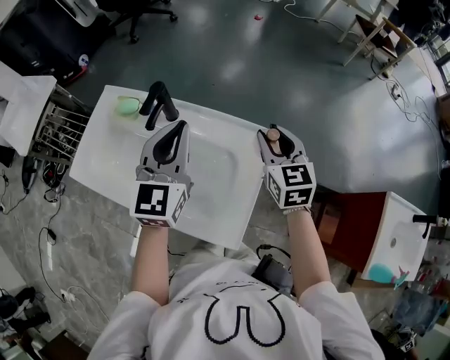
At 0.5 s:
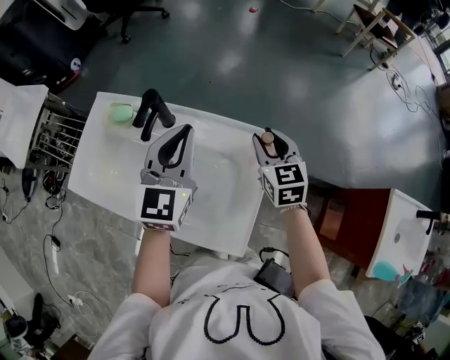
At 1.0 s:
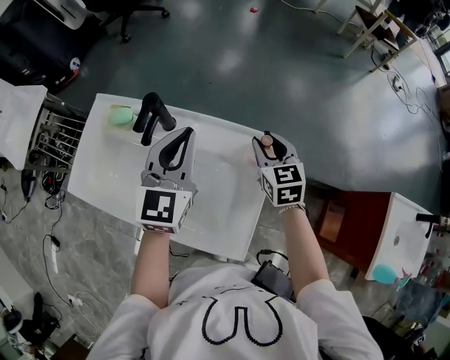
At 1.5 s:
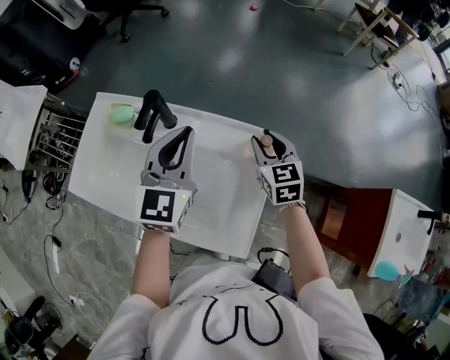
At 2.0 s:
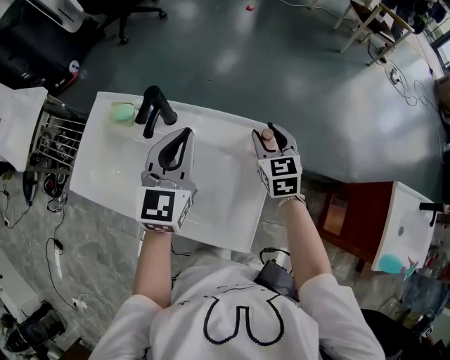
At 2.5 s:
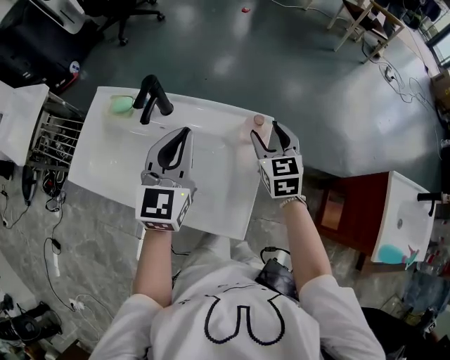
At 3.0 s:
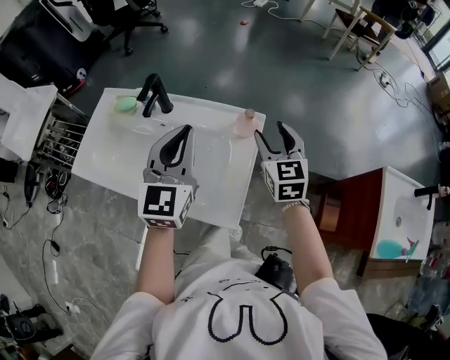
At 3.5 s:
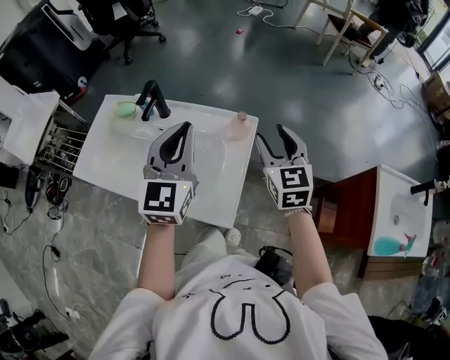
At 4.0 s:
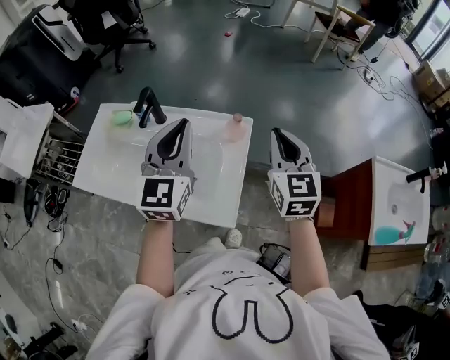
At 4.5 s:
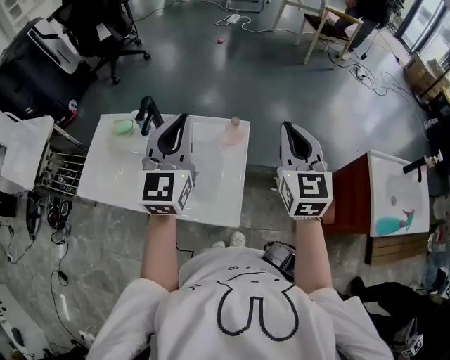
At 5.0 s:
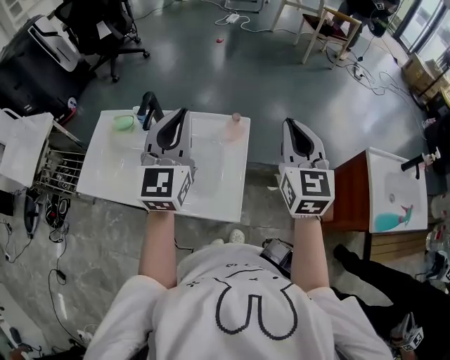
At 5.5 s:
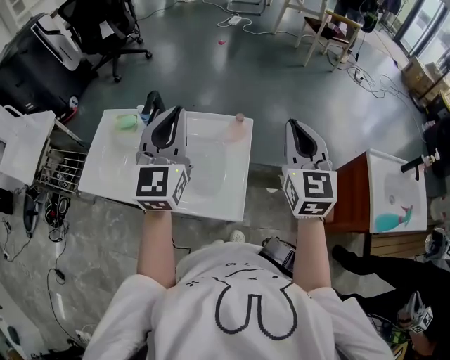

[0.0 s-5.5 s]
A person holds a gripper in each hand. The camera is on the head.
0.0 to 2.0 s: The right gripper moves downward, some 10 cm.
2.0 to 3.5 s: The grippers both shift backward, upward and to the right by about 15 cm.
3.5 to 5.5 s: The left gripper heads upward, covering about 5 cm, while the right gripper travels upward and backward by about 15 cm, and closes up.

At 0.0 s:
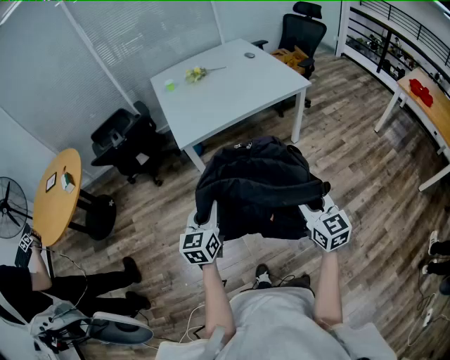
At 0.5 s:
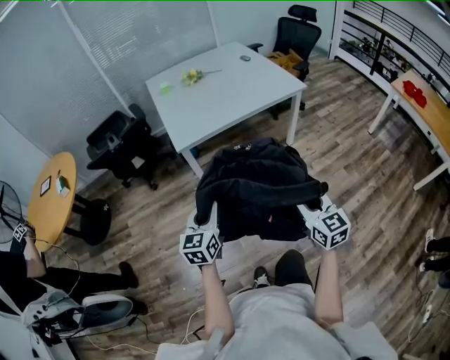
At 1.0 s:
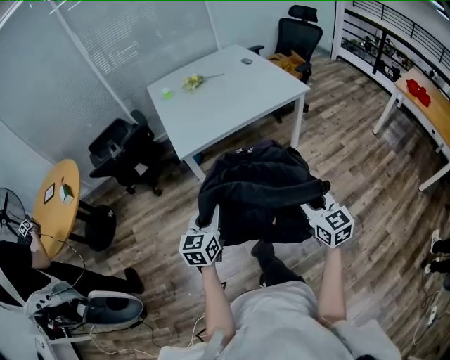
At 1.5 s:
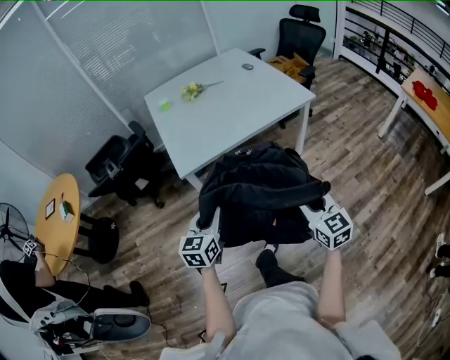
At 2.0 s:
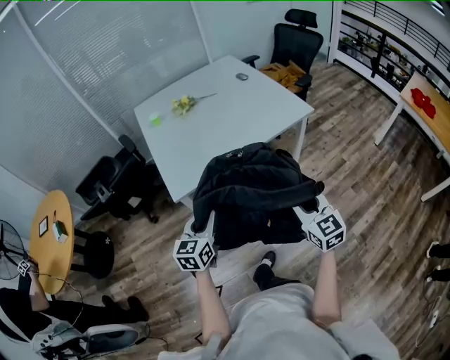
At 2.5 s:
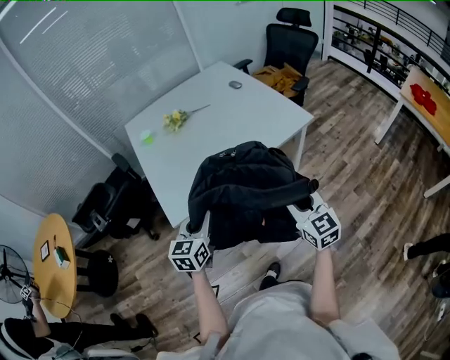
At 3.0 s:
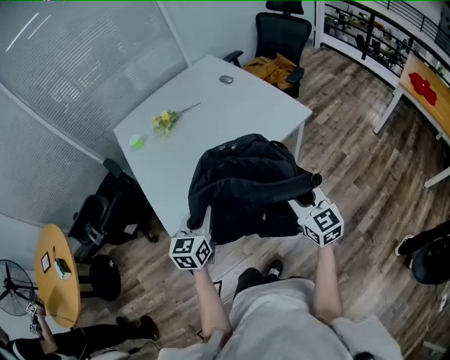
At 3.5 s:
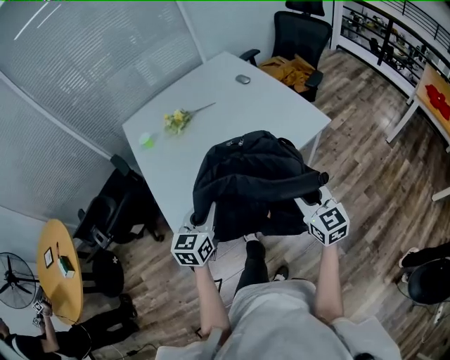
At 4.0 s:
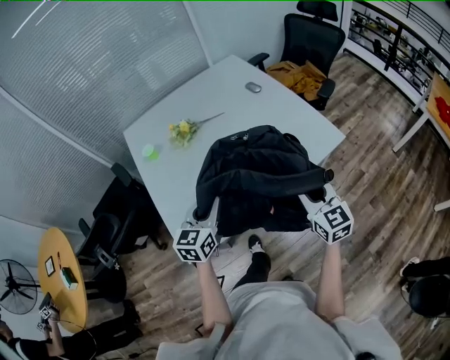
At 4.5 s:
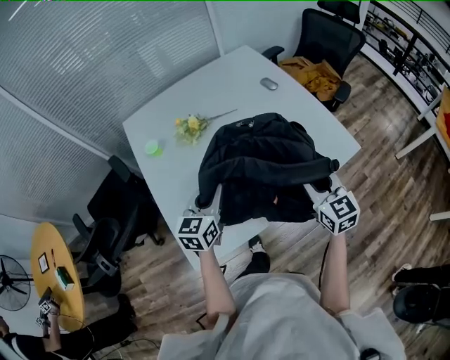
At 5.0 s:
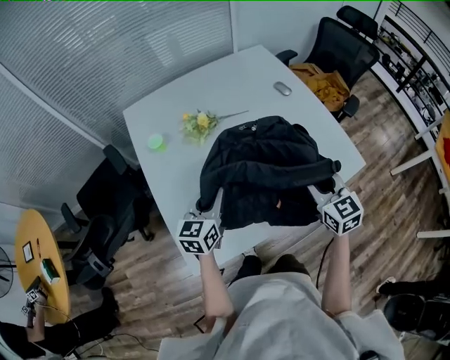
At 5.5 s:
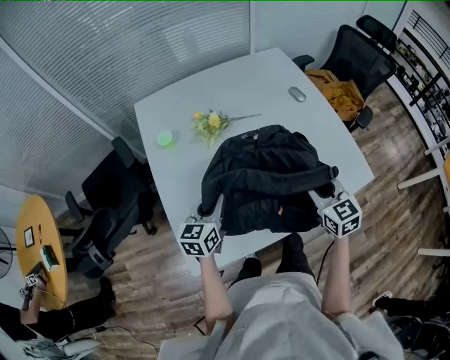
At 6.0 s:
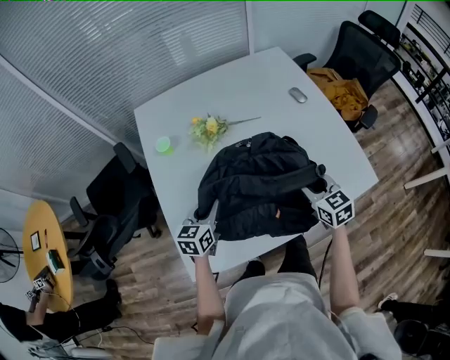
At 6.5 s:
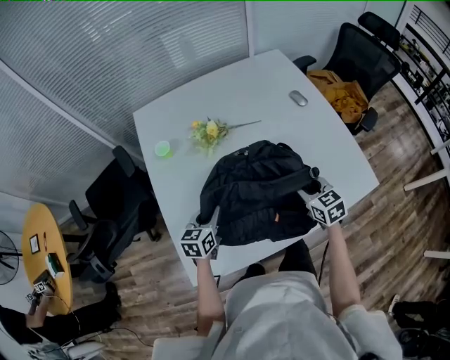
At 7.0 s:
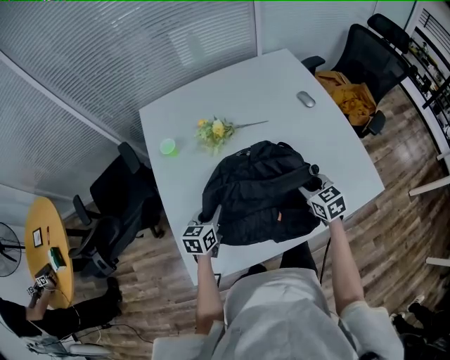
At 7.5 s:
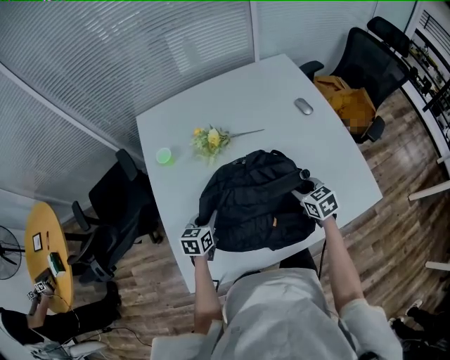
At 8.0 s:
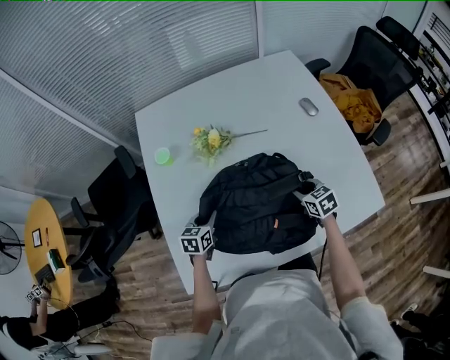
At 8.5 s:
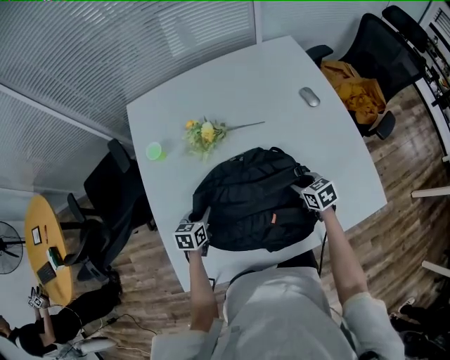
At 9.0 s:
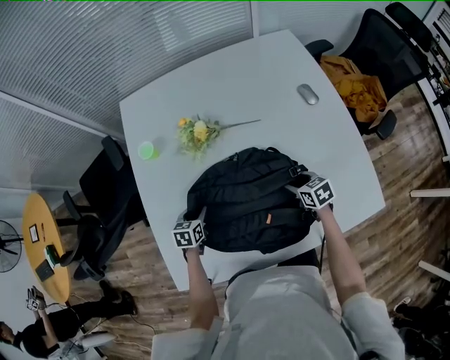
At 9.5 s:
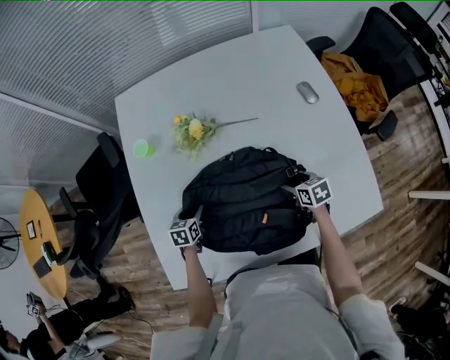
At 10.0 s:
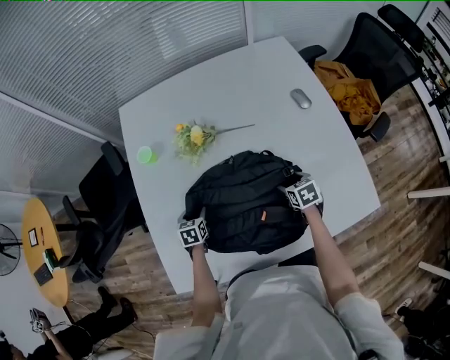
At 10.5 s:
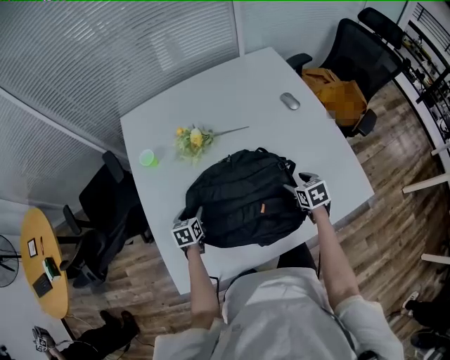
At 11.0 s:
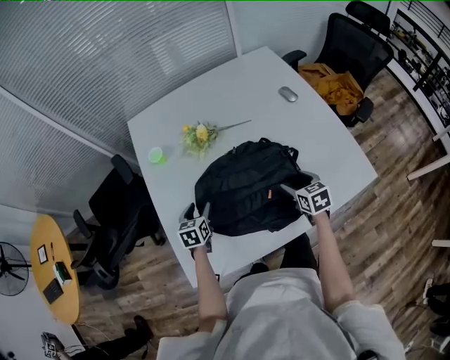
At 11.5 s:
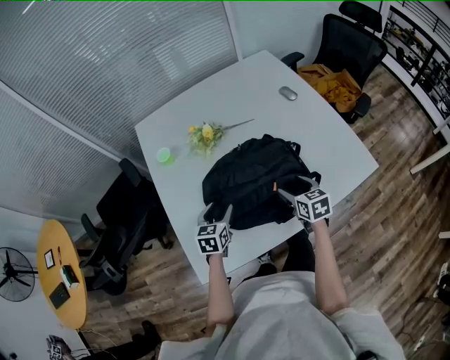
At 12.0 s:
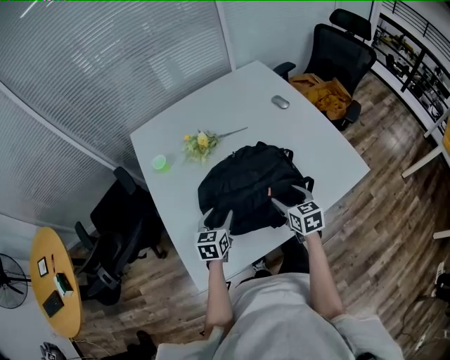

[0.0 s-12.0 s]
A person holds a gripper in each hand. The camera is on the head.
0.0 to 2.0 s: Both grippers move forward, roughly 25 cm.
2.0 to 4.0 s: The grippers both shift forward by approximately 40 cm.
4.0 to 6.0 s: The left gripper goes some 25 cm forward, downward and to the left. Meanwhile the right gripper shifts some 25 cm forward and downward, and swivels some 20 degrees.
6.0 to 8.0 s: The right gripper travels downward and forward by some 15 cm. Meanwhile the left gripper heads downward, covering roughly 10 cm.
8.0 to 10.0 s: The grippers both shift downward by some 5 cm. The right gripper opens, while the left gripper opens up.
10.0 to 12.0 s: The right gripper shifts about 25 cm backward, upward and to the left, and changes its angle by about 30 degrees. The left gripper moves upward and backward, about 20 cm, and rotates about 30 degrees.

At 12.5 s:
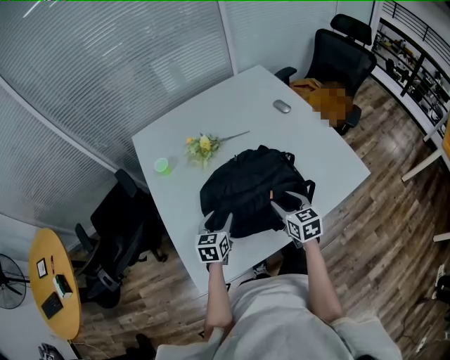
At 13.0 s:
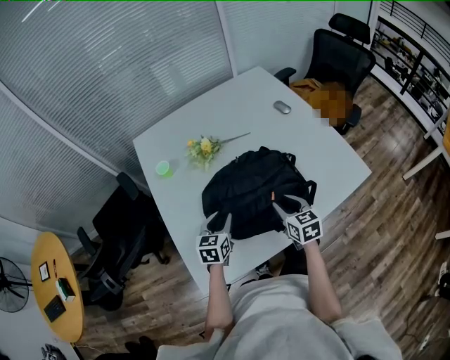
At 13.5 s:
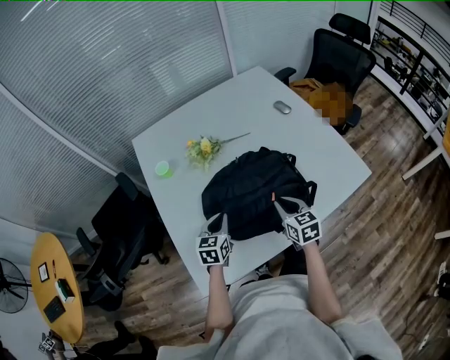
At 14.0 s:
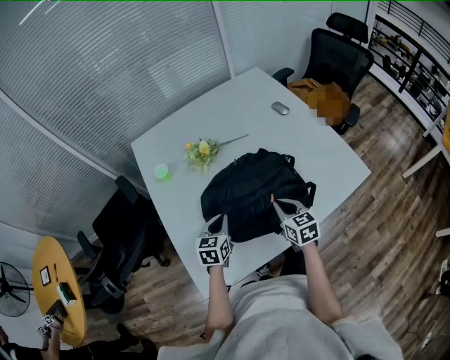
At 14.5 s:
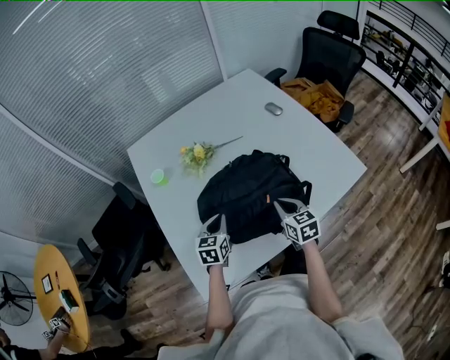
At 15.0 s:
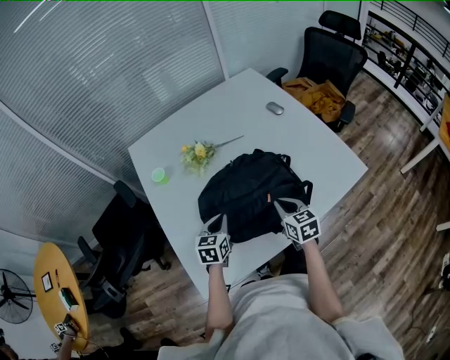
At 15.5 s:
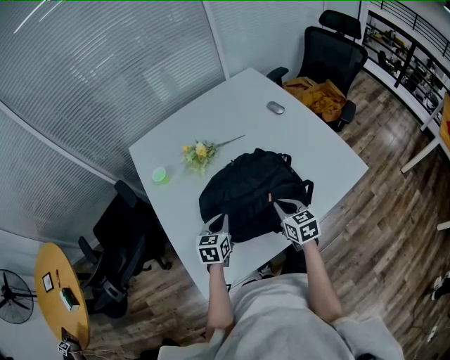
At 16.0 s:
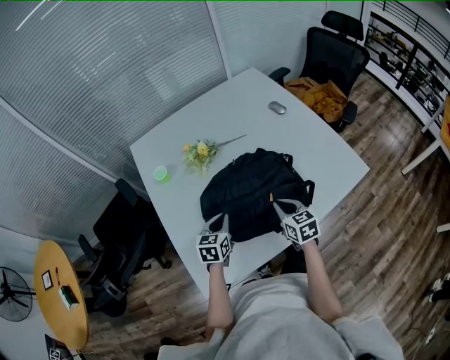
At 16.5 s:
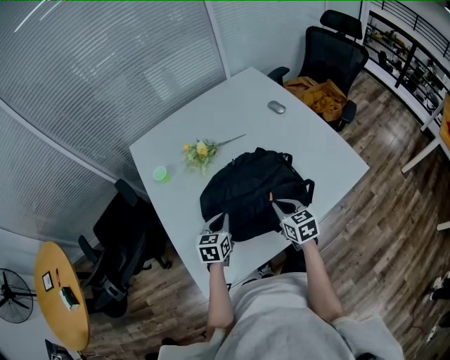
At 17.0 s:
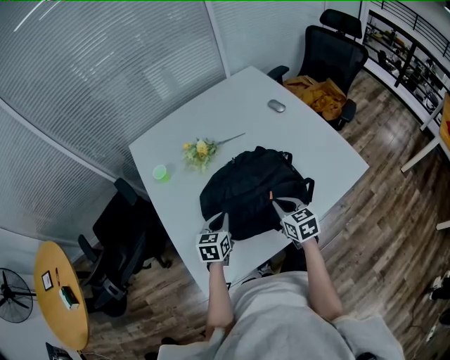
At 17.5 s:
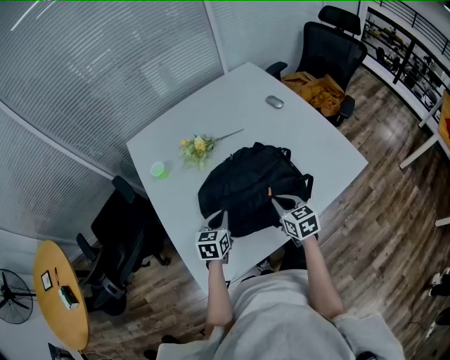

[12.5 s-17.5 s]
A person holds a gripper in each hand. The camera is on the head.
12.5 to 15.0 s: The left gripper closes up, while the right gripper closes up.
15.0 to 17.5 s: The grippers move only a little.

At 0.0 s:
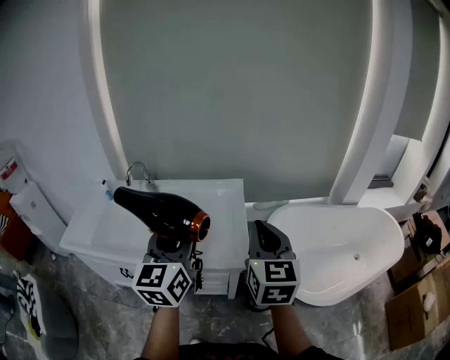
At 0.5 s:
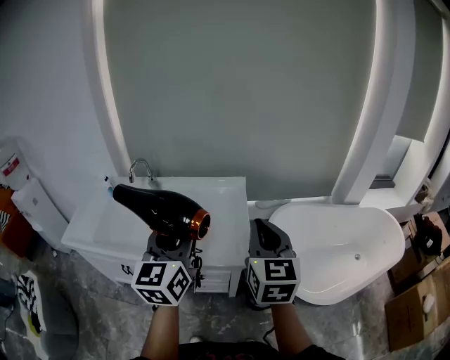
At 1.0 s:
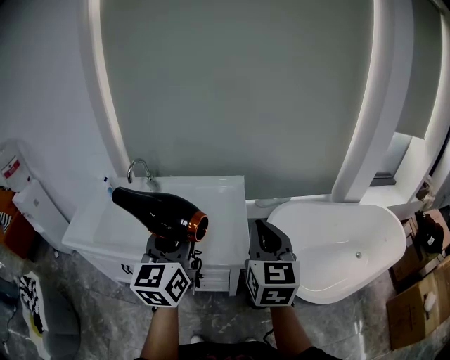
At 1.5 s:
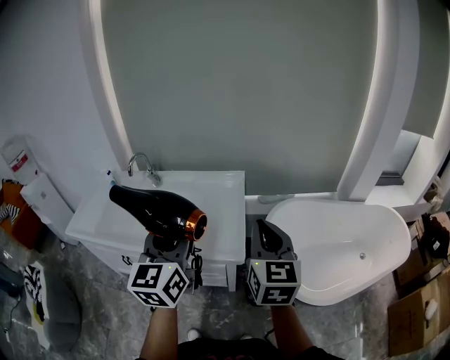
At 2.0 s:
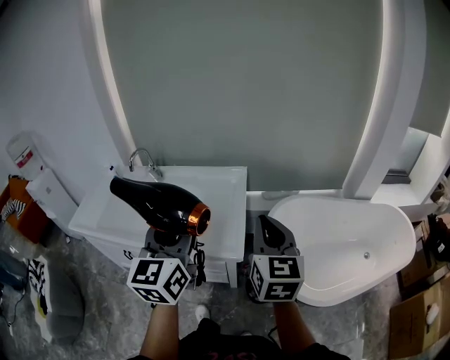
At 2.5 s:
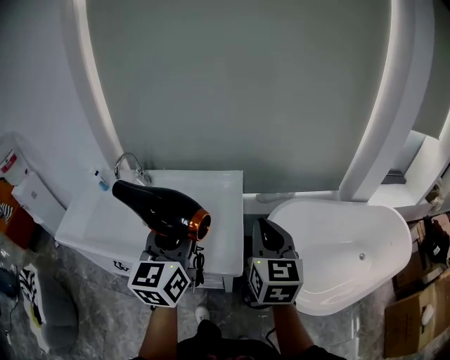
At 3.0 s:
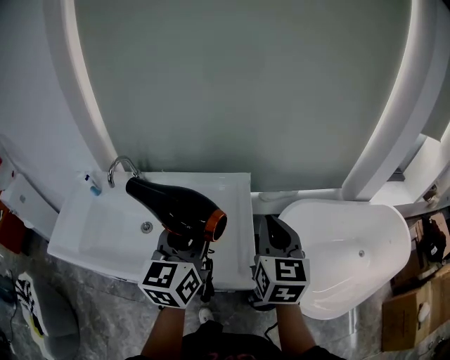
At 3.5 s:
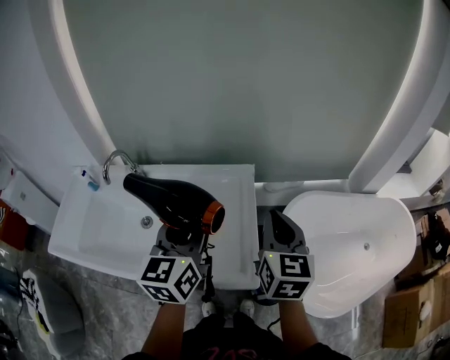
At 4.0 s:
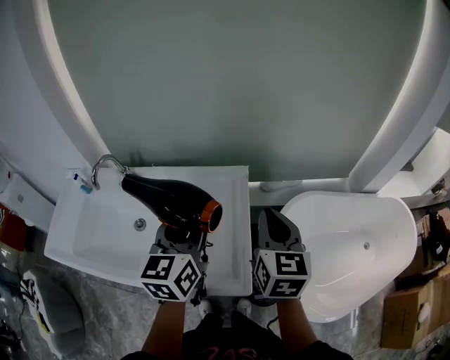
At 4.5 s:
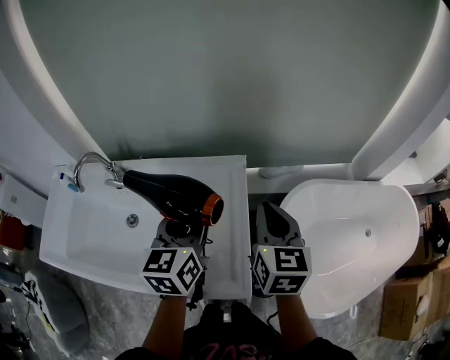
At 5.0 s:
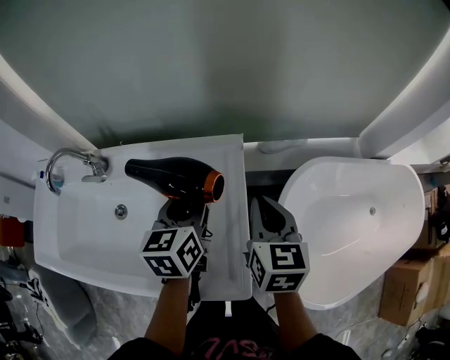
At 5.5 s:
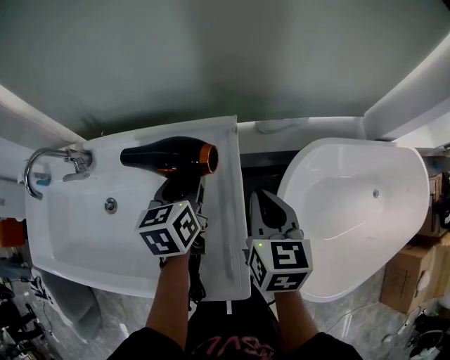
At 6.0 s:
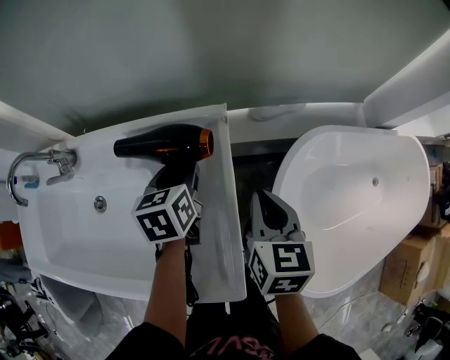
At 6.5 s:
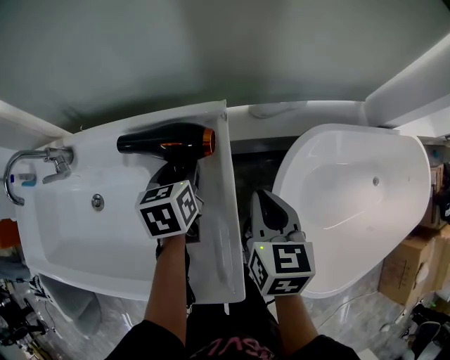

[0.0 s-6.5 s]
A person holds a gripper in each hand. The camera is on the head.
0.0 to 2.0 s: Both grippers move to the right, approximately 5 cm.
2.0 to 4.5 s: The grippers both shift forward and downward by some 30 cm. The left gripper changes its angle by approximately 20 degrees.
4.5 to 6.5 s: The left gripper is displaced downward and forward by roughly 25 cm, and swivels roughly 30 degrees. Meanwhile the right gripper moves downward, roughly 15 cm.
